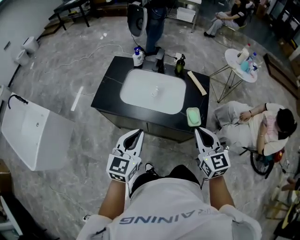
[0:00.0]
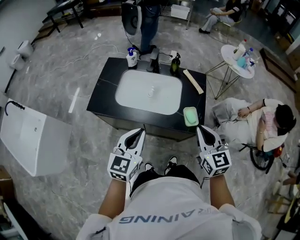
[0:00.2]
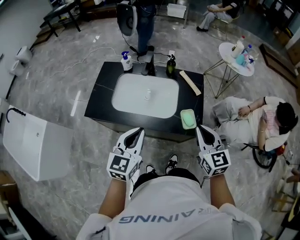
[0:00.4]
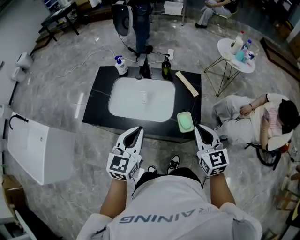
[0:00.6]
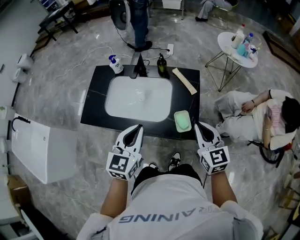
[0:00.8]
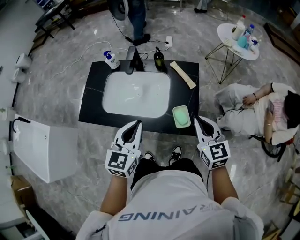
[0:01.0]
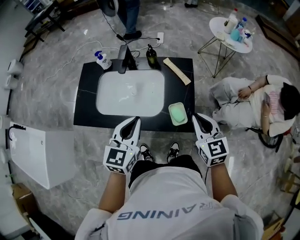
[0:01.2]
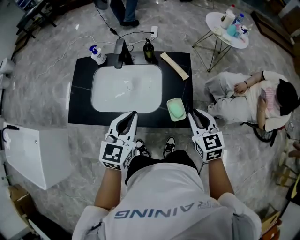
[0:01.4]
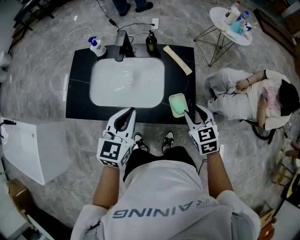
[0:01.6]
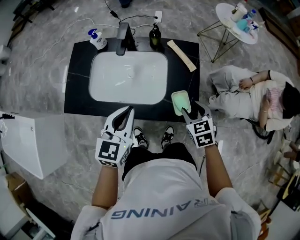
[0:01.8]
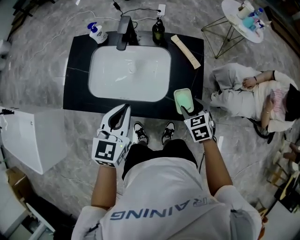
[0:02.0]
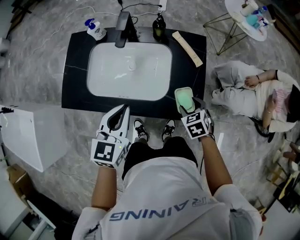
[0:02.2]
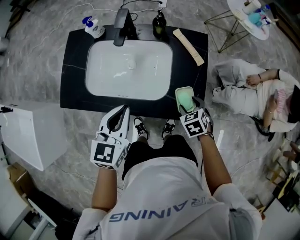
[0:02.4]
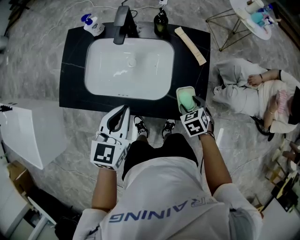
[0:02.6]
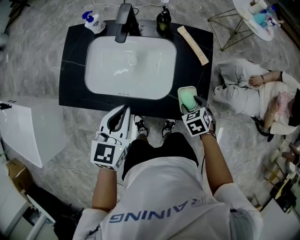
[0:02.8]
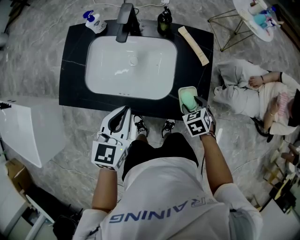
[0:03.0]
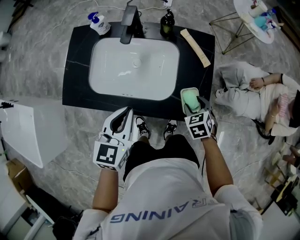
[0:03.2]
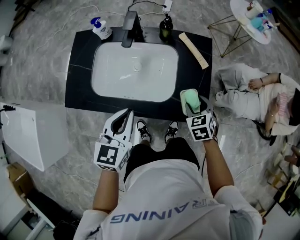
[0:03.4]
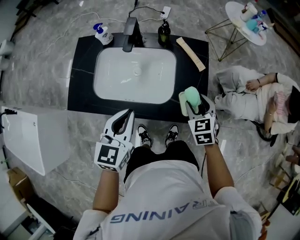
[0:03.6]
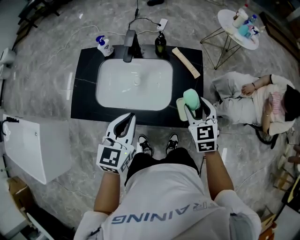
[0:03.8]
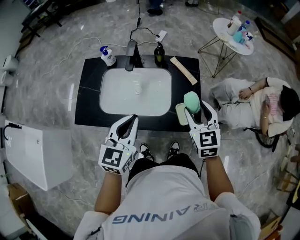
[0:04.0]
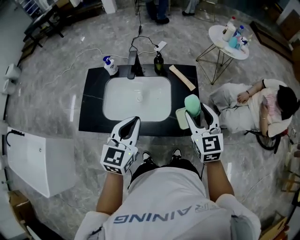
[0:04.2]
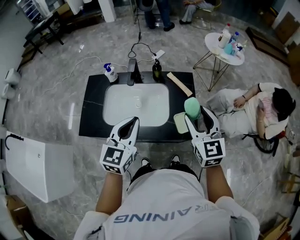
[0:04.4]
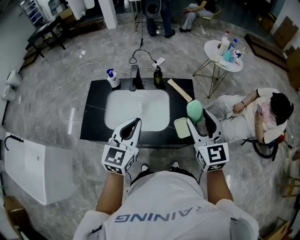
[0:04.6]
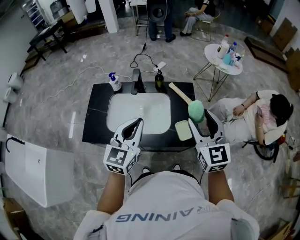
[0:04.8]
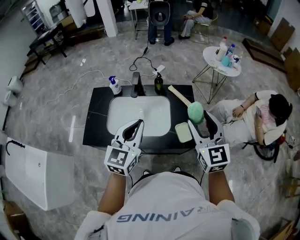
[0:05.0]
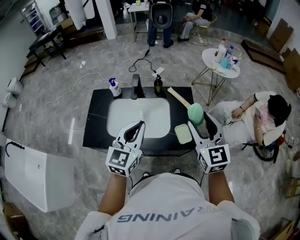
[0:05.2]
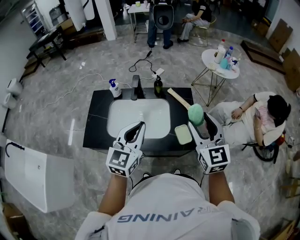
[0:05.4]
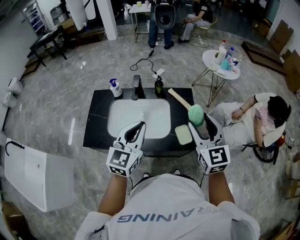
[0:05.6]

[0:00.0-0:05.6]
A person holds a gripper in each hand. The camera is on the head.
0:00.0 to 0:01.4: The left gripper is displaced forward and to the right by approximately 20 cm. Meanwhile the right gripper heads forward, to the right and downward, covering some 15 cm.
0:01.4 to 0:02.8: The right gripper is displaced downward by approximately 20 cm, points its fingers roughly 40 degrees further downward, and opens up. Meanwhile the left gripper goes some 10 cm downward and to the left.
0:02.8 to 0:04.2: The left gripper heads upward, covering approximately 10 cm, while the right gripper travels upward by about 30 cm, and tilts its fingers some 50 degrees upward.
0:04.2 to 0:05.6: The left gripper is displaced upward by approximately 5 cm. The right gripper shifts roughly 10 cm upward.

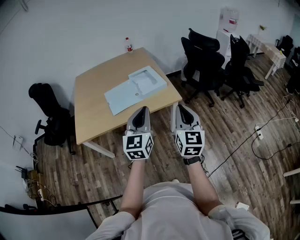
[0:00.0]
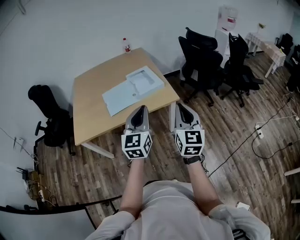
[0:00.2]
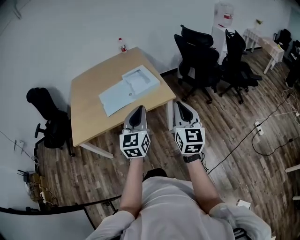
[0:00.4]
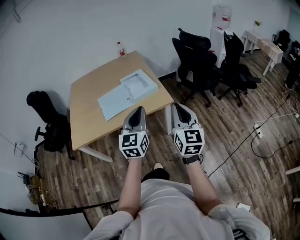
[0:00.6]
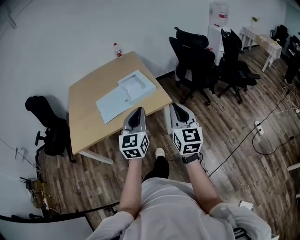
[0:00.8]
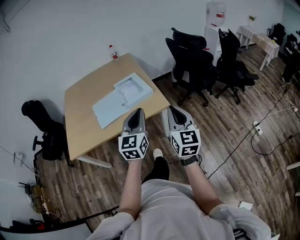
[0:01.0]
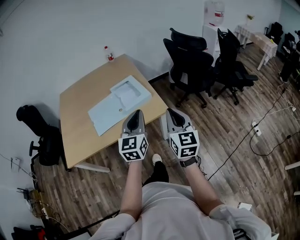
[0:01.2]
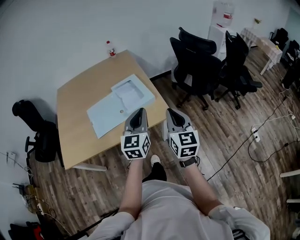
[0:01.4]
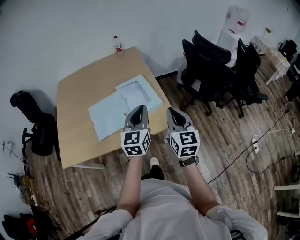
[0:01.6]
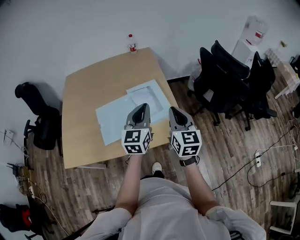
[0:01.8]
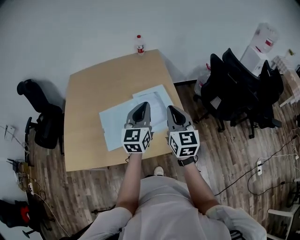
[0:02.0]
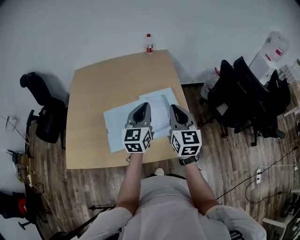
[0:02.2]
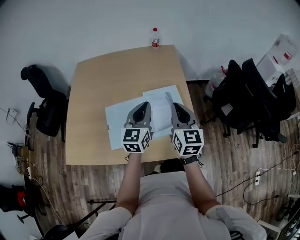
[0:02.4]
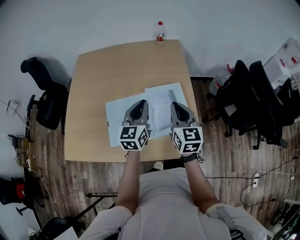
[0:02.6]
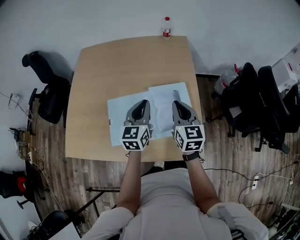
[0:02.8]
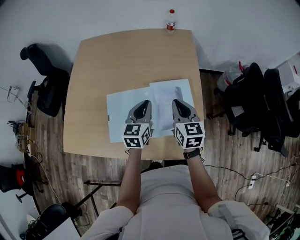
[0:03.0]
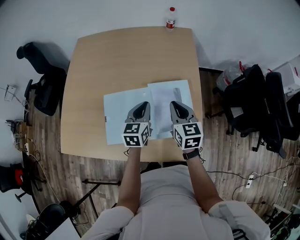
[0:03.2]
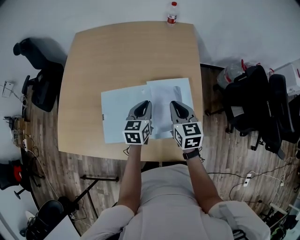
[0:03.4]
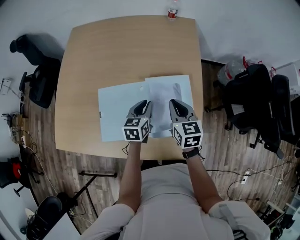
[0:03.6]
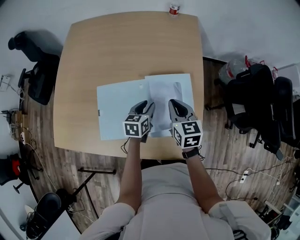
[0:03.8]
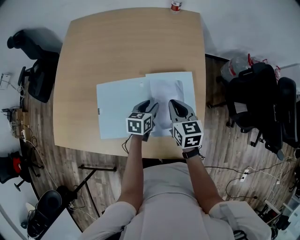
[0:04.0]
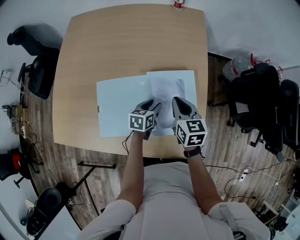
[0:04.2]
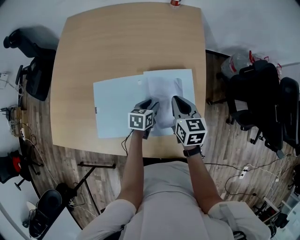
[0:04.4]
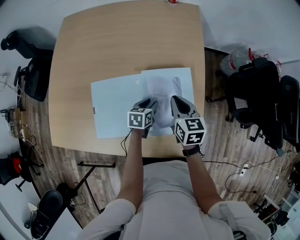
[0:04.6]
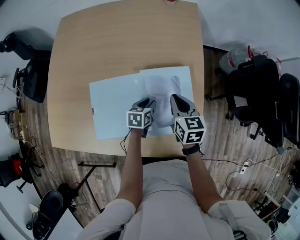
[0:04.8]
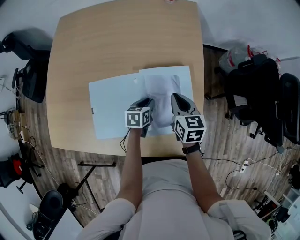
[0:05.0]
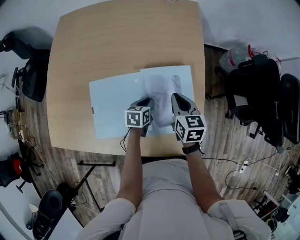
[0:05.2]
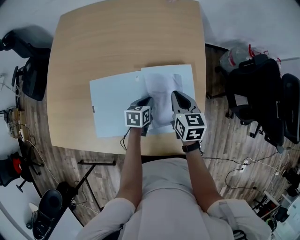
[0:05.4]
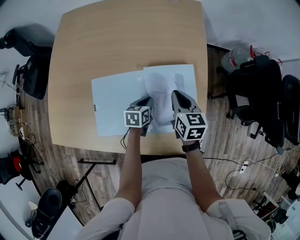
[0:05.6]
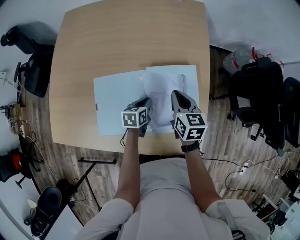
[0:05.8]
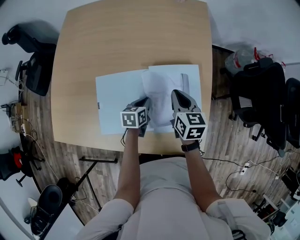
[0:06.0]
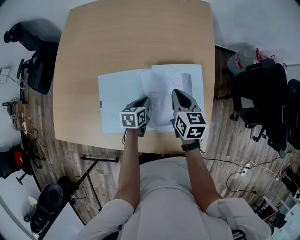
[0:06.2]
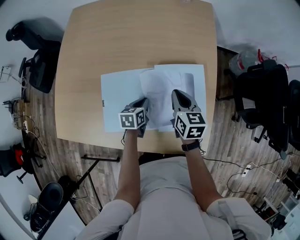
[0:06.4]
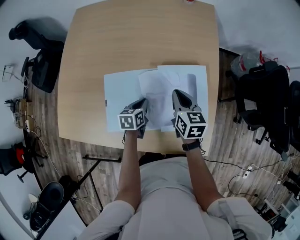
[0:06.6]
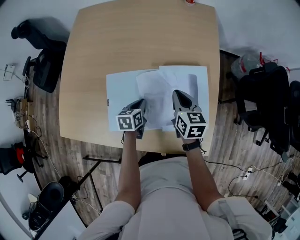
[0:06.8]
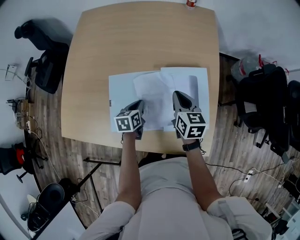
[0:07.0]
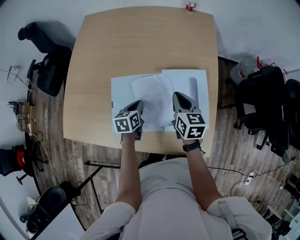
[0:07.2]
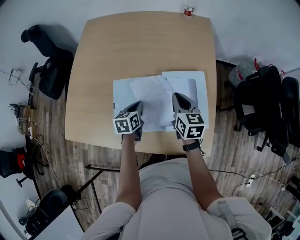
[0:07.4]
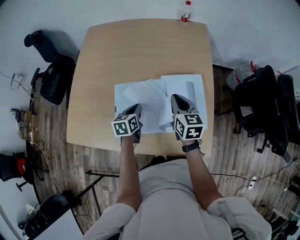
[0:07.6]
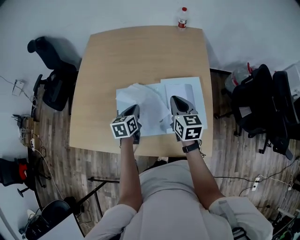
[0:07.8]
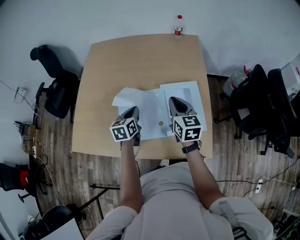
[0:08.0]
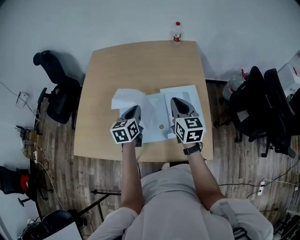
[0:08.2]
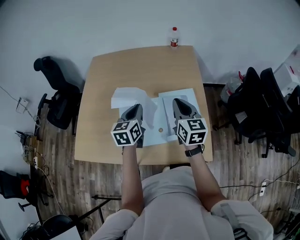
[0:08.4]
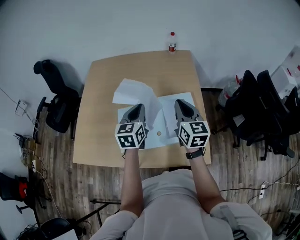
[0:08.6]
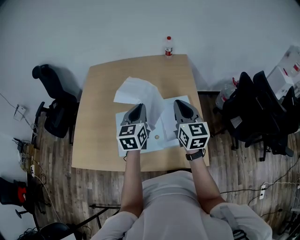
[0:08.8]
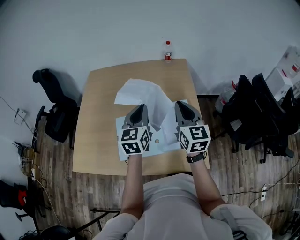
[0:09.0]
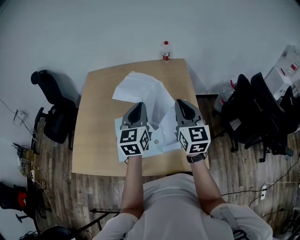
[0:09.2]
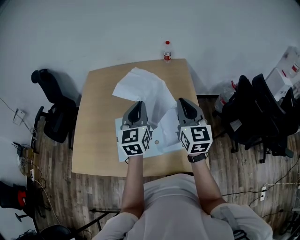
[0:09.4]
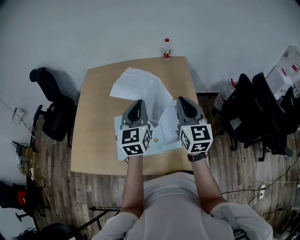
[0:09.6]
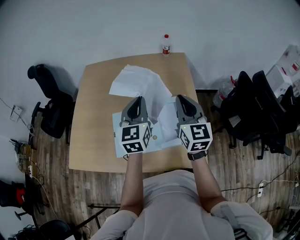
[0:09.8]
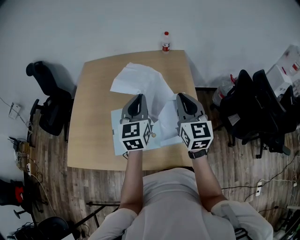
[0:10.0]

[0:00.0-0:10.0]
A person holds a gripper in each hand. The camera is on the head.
0:00.0 to 0:01.4: Both grippers move forward, approximately 20 cm.
0:01.4 to 0:02.8: The grippers both shift forward and to the left by some 40 cm. The right gripper rotates roughly 30 degrees, while the left gripper changes its angle by approximately 20 degrees.
0:02.8 to 0:04.2: The right gripper moves downward and forward, about 15 cm, and changes its angle by about 20 degrees. Meanwhile the left gripper is displaced downward by about 25 cm, tips its fingers downward by roughly 30 degrees, and opens its fingers.
0:04.2 to 0:05.8: The left gripper moves some 5 cm, and closes.
0:05.8 to 0:07.2: The right gripper heads to the left, covering about 5 cm; the left gripper goes approximately 15 cm to the left and upward.
0:07.2 to 0:08.6: Both grippers move upward, approximately 20 cm. The left gripper rotates about 30 degrees. Meanwhile the right gripper rotates about 20 degrees.
0:08.6 to 0:10.0: The two grippers go some 5 cm upward.

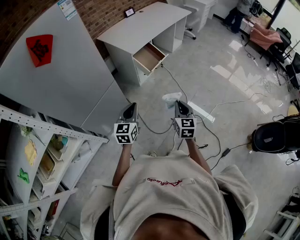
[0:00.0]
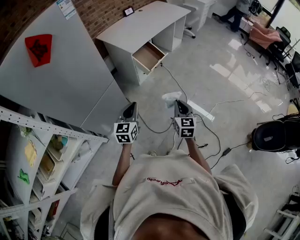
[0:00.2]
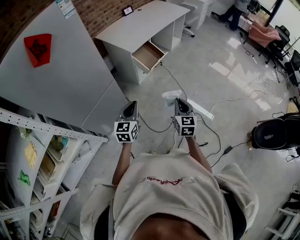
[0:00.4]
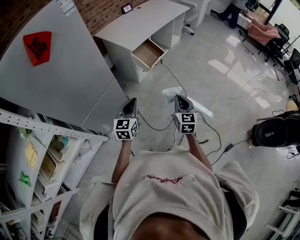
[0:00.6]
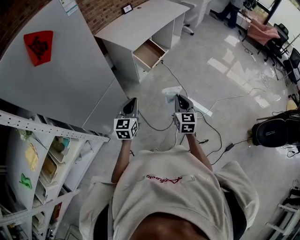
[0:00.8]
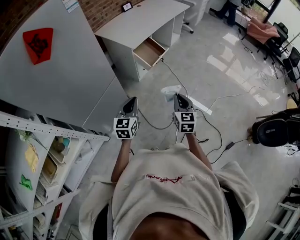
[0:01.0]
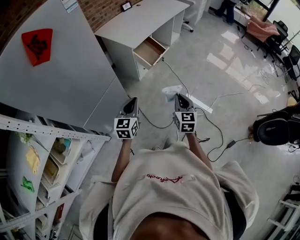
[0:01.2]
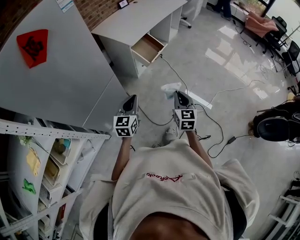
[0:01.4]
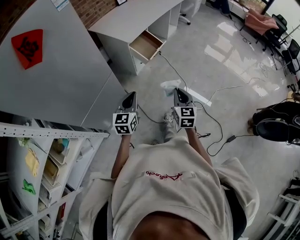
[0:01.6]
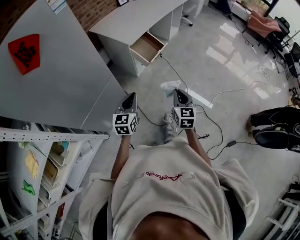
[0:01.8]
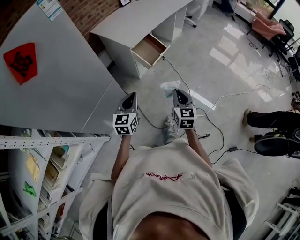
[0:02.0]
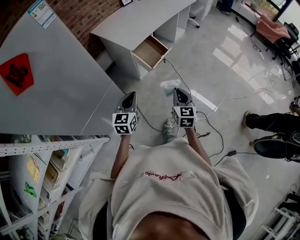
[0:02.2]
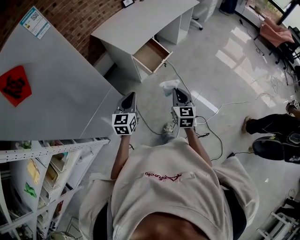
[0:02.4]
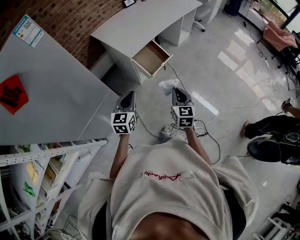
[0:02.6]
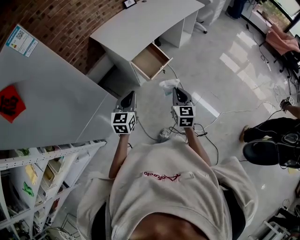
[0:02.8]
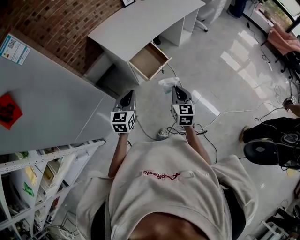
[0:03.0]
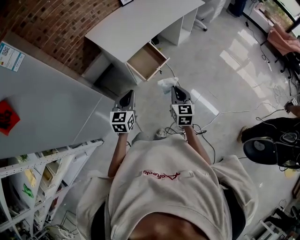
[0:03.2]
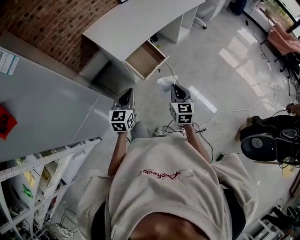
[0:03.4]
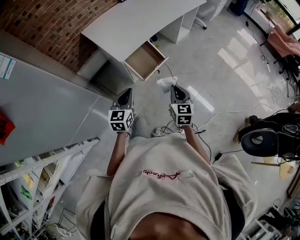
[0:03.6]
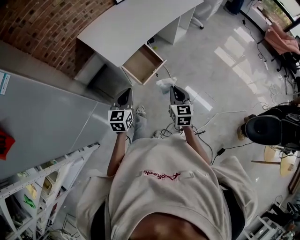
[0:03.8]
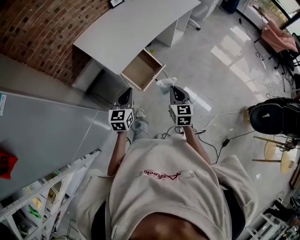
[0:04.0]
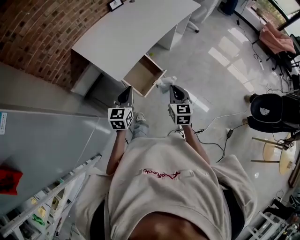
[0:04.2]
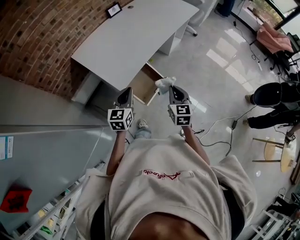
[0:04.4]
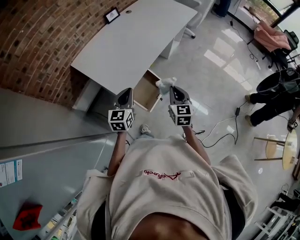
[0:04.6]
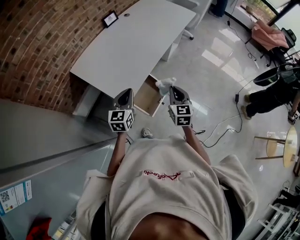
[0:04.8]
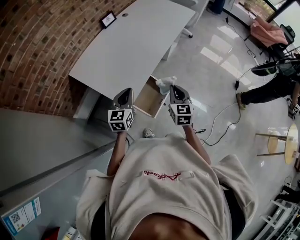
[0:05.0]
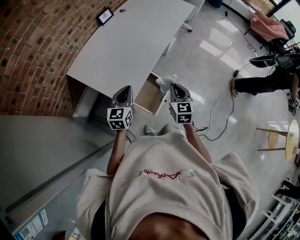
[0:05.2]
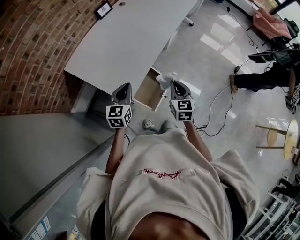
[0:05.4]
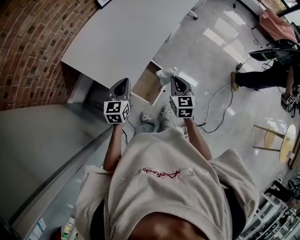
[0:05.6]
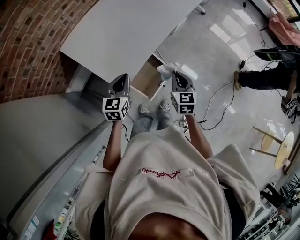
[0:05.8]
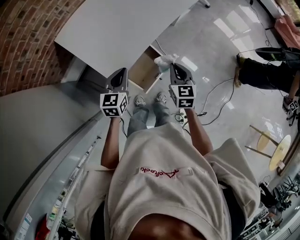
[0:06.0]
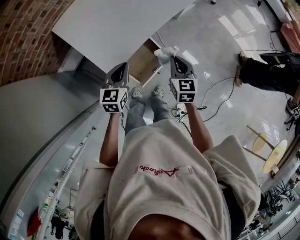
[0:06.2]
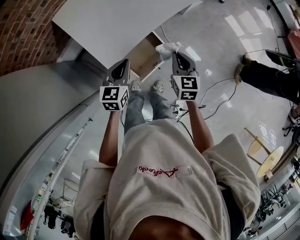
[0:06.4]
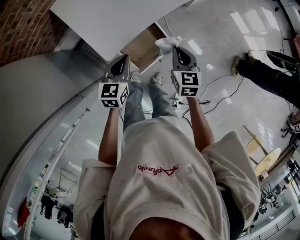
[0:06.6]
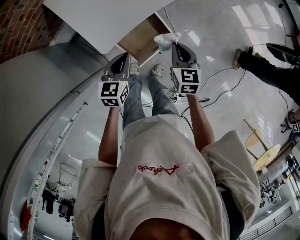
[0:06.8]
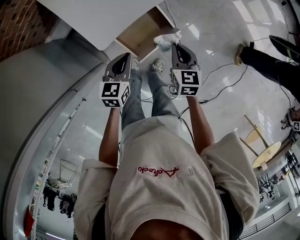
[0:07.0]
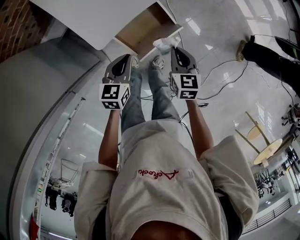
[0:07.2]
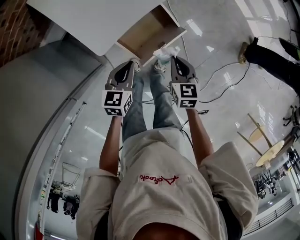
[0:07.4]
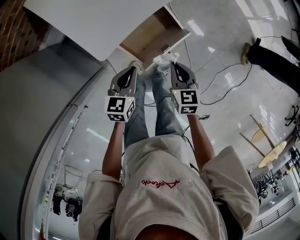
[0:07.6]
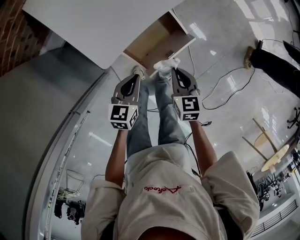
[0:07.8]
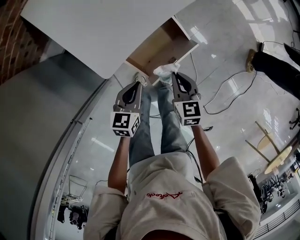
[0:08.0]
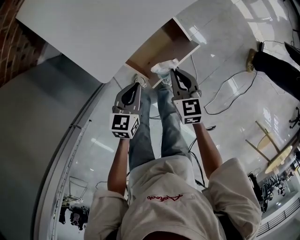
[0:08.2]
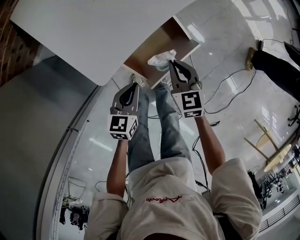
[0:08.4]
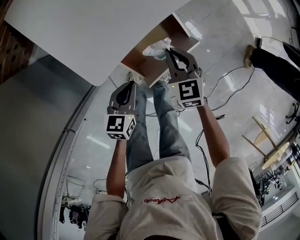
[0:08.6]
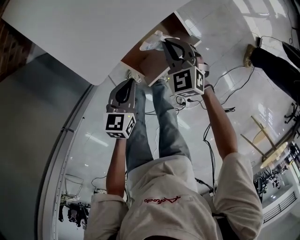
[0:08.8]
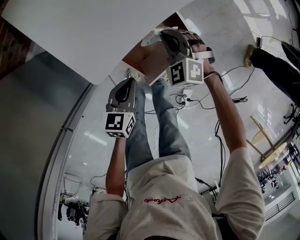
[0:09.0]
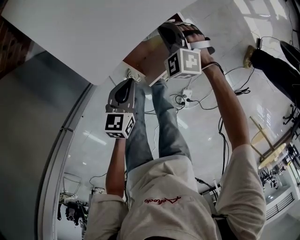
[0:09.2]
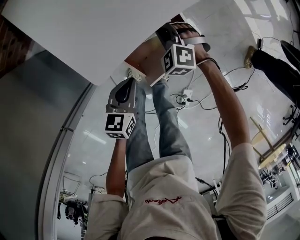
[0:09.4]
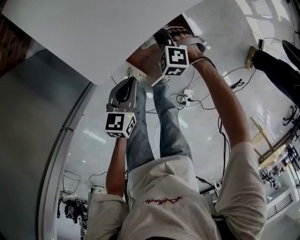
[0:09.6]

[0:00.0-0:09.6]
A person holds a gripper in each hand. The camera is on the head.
0:00.0 to 0:01.6: The right gripper shifts roughly 5 cm to the left, while the left gripper moves about 5 cm.
0:01.6 to 0:03.2: The grippers both shift forward by some 30 cm.
0:03.2 to 0:04.8: The two grippers go approximately 30 cm forward.
0:04.8 to 0:06.4: The left gripper goes some 10 cm downward, while the right gripper heads downward and forward, covering about 15 cm.
0:06.4 to 0:08.0: The grippers both shift downward and backward by about 25 cm.
0:08.0 to 0:09.6: The right gripper moves downward, forward and to the left, about 20 cm, and rolls counterclockwise, seen from behind, by about 70 degrees.
